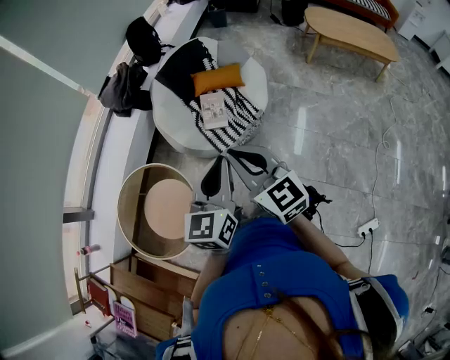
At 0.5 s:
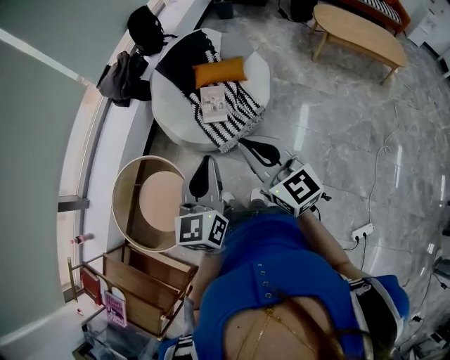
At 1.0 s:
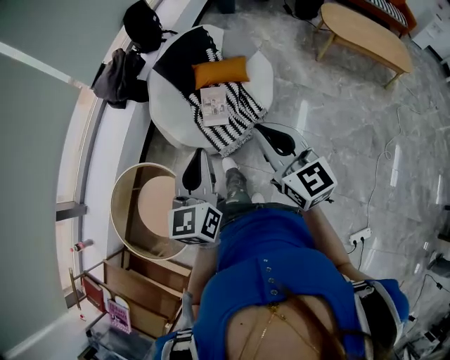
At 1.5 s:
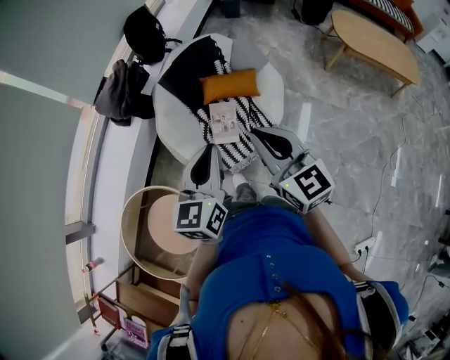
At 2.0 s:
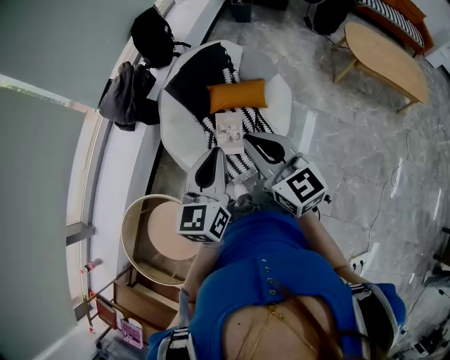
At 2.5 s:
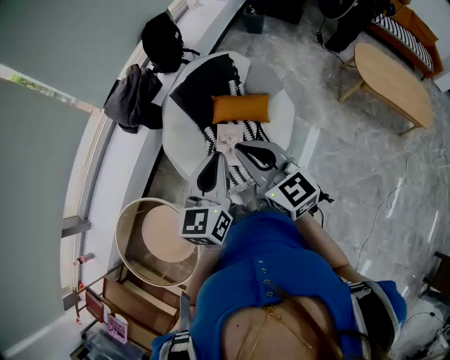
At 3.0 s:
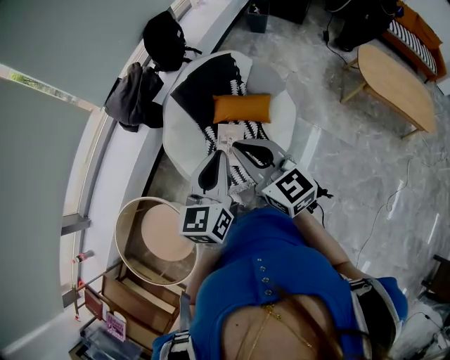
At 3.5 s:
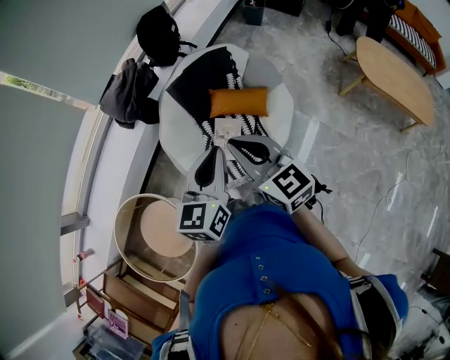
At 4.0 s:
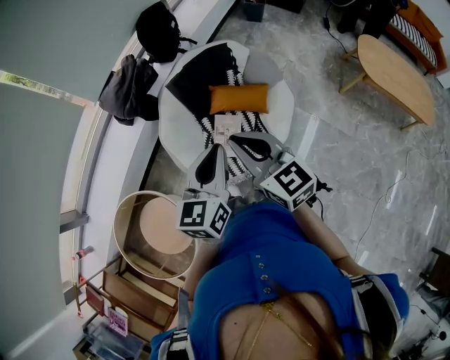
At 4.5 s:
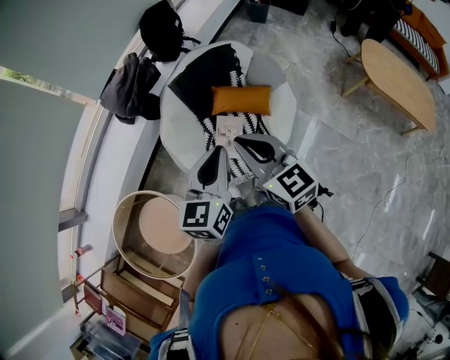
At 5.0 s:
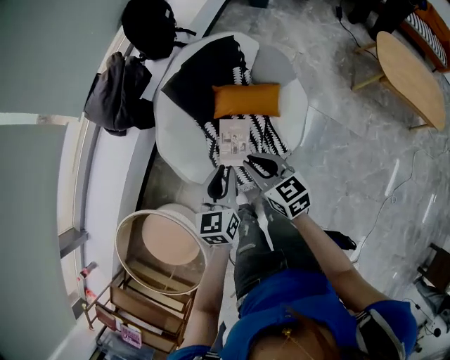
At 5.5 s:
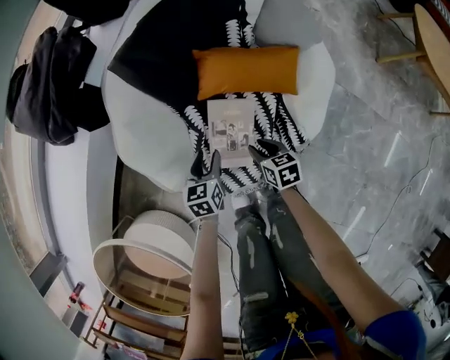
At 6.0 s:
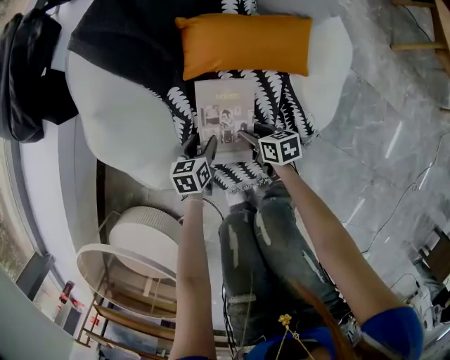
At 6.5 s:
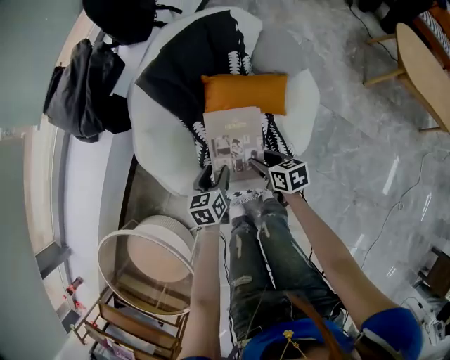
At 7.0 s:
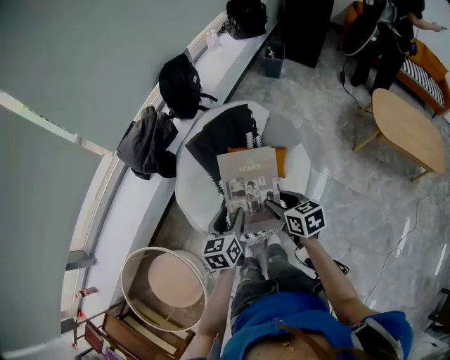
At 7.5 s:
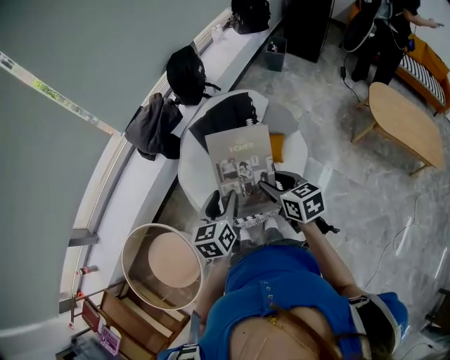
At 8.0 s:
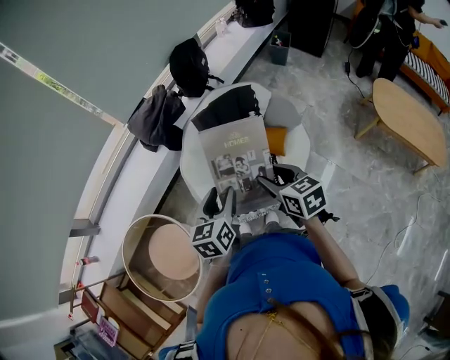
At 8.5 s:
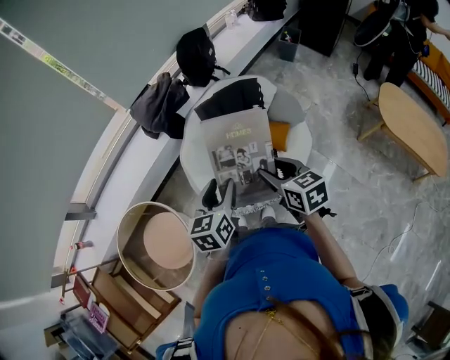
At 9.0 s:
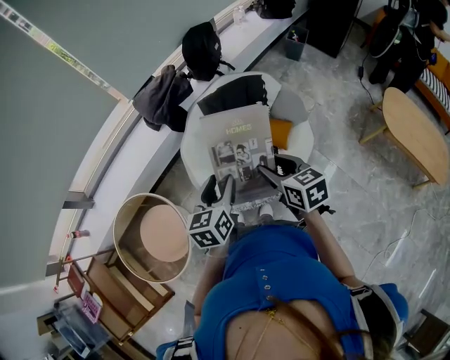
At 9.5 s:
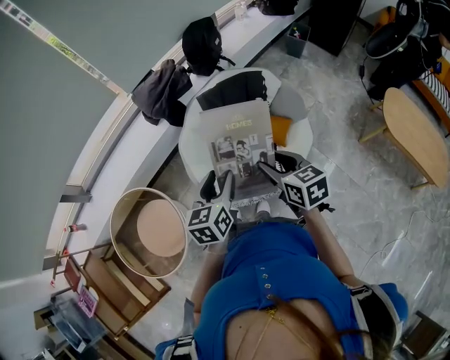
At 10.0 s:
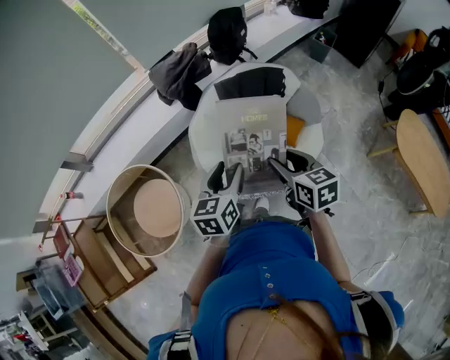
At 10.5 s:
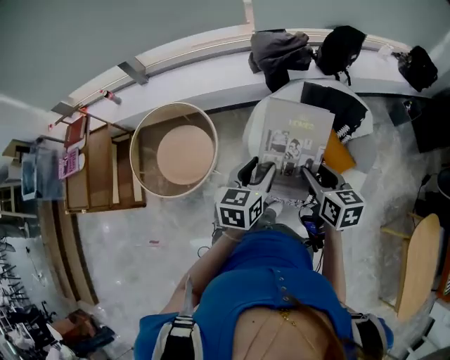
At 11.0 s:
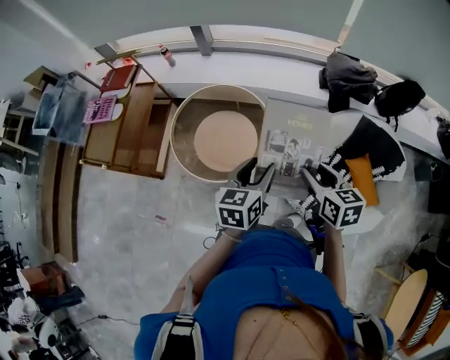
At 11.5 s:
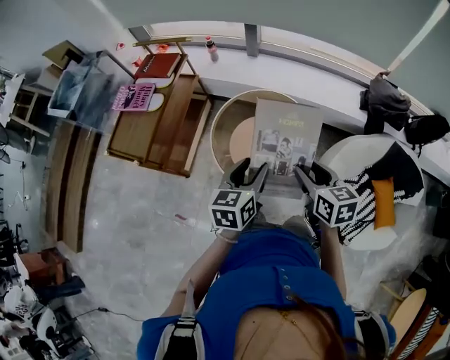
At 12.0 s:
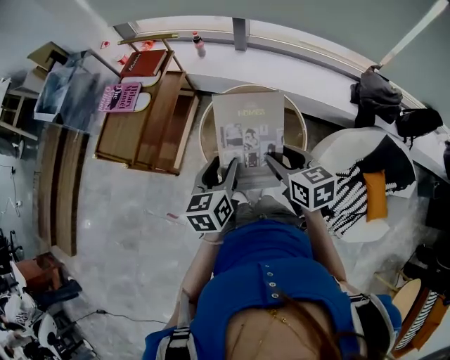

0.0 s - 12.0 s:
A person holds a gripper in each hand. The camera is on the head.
0.0 s - 2.0 s: Both grippers move forward, about 40 cm.
2.0 s - 4.0 s: The right gripper shifts roughly 5 cm forward, while the left gripper shifts by approximately 5 cm.
4.0 s - 6.0 s: Both grippers move downward, roughly 90 cm. The left gripper angles its fingers downward, by about 40 degrees, and opens up. The right gripper tips its fingers downward by roughly 40 degrees, and opens its fingers.
6.0 s - 8.0 s: Both grippers move upward, about 80 cm. The right gripper changes its angle by some 40 degrees; the left gripper turns by roughly 30 degrees.
8.0 s - 10.0 s: The grippers move only a little.
10.0 s - 12.0 s: The two grippers travel together, roughly 70 cm. The left gripper rotates some 60 degrees. The right gripper changes its angle by about 50 degrees.

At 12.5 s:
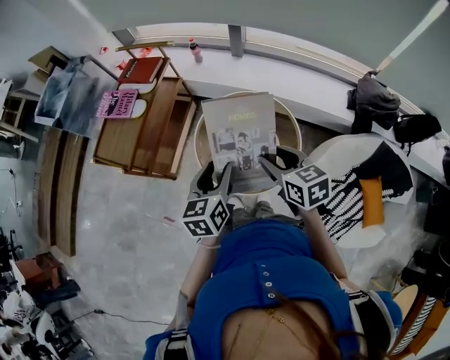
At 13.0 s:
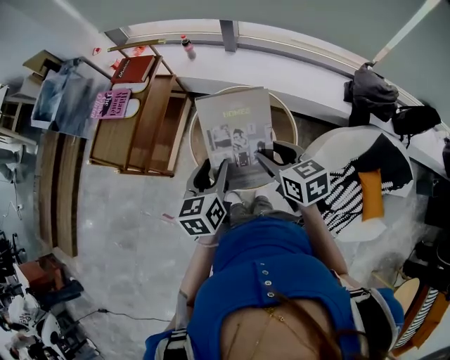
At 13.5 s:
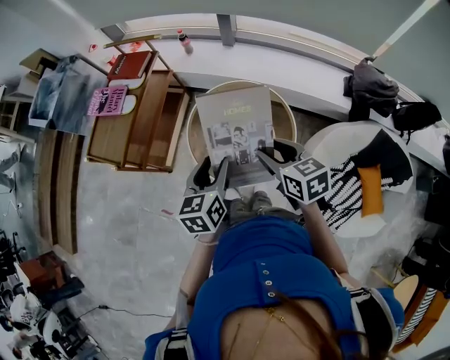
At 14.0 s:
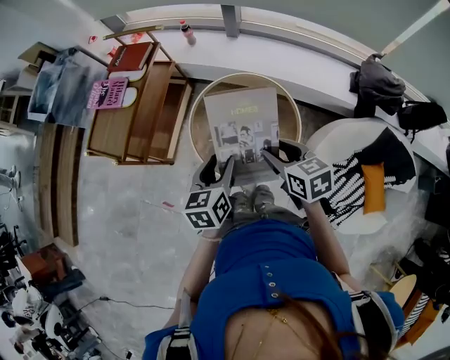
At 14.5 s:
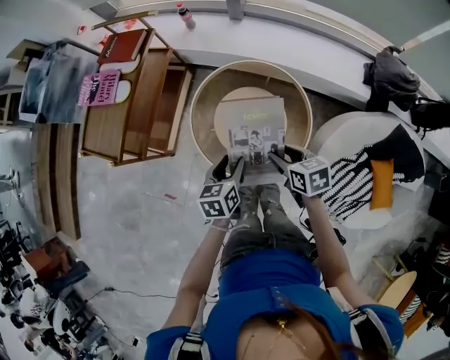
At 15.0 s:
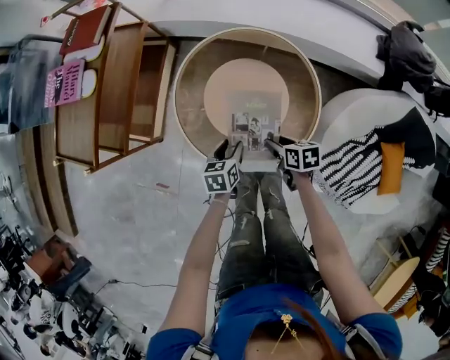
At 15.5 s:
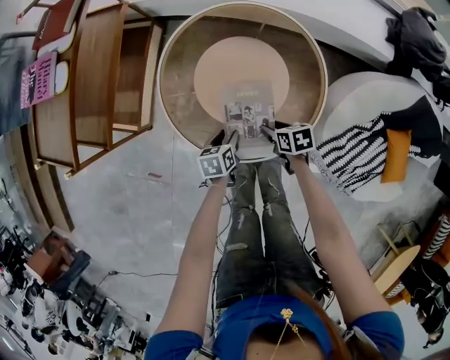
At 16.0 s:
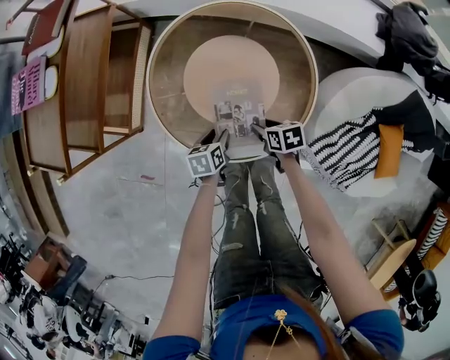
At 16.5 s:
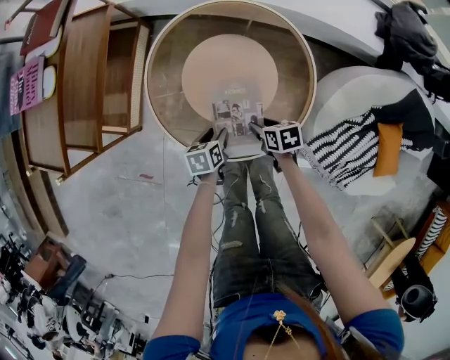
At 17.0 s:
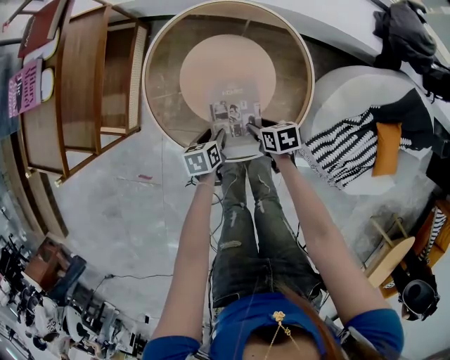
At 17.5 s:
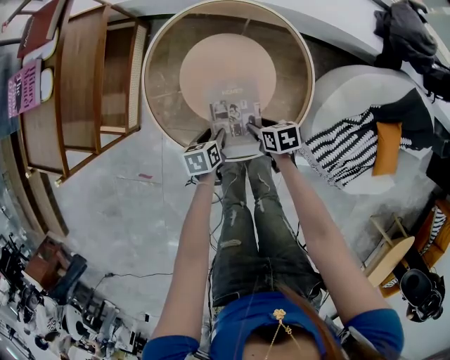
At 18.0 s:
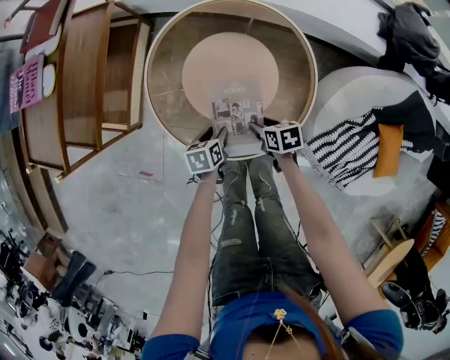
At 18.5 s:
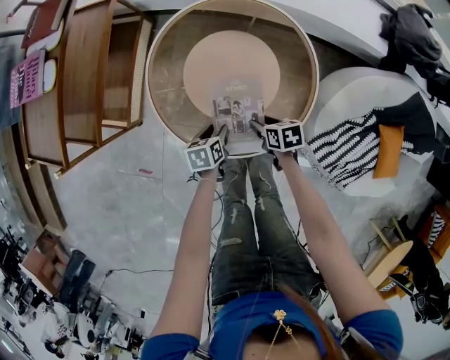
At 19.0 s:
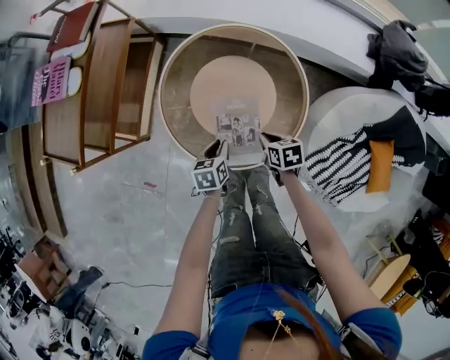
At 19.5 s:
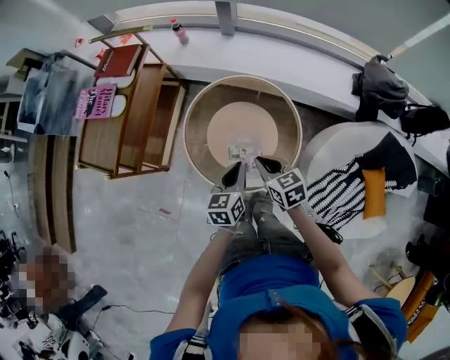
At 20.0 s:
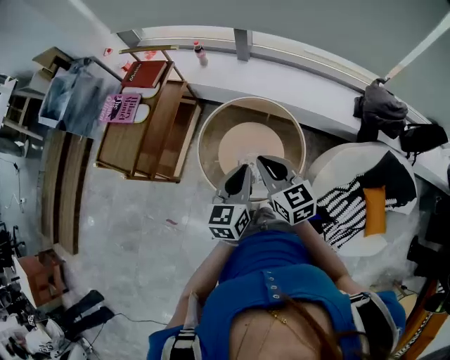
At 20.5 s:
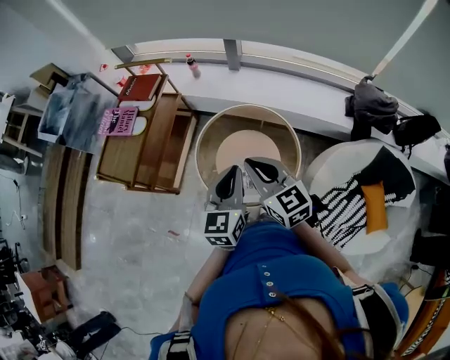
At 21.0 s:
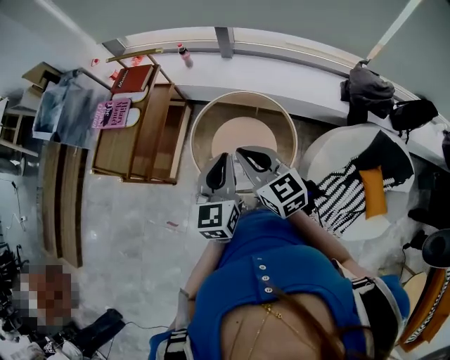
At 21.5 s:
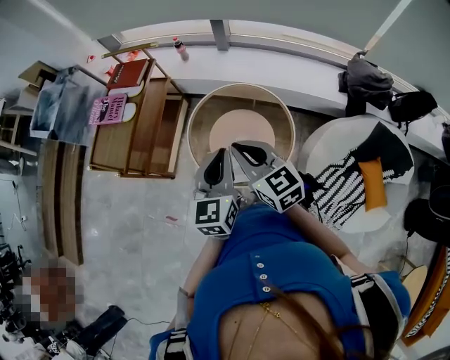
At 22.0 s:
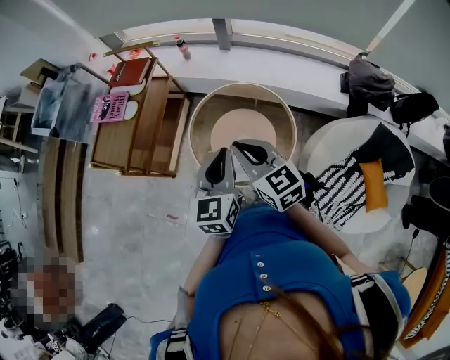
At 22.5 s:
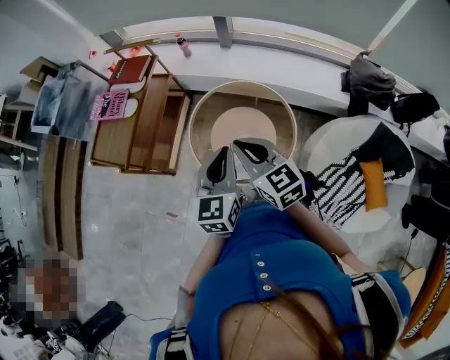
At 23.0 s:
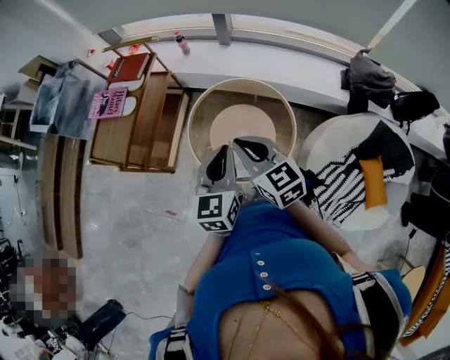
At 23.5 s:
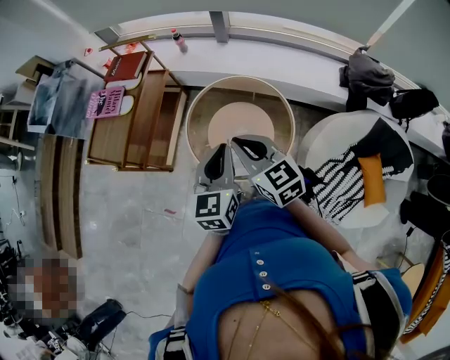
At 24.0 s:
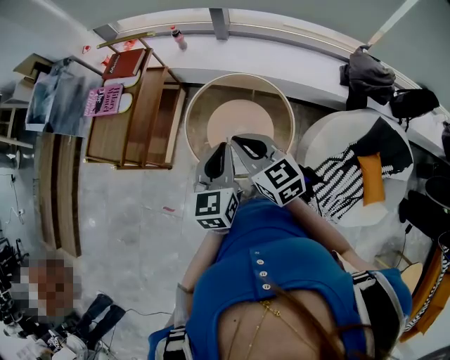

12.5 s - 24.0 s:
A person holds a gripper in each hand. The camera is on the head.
12.5 s - 14.5 s: The grippers both shift downward by some 20 cm.
14.5 s - 16.5 s: Both grippers move downward, approximately 35 cm. The left gripper changes its angle by about 20 degrees. Meanwhile the right gripper turns by about 20 degrees.
16.5 s - 18.5 s: The two grippers keep their place.
18.5 s - 20.0 s: Both grippers travel together upward, about 50 cm. The left gripper tilts its fingers roughly 40 degrees upward, and closes up. The right gripper tips its fingers upward by some 40 degrees, and closes.
20.0 s - 22.0 s: The left gripper shifts some 5 cm upward. The right gripper shifts by roughly 5 cm.
22.0 s - 24.0 s: There are only small adjustments of the grippers.

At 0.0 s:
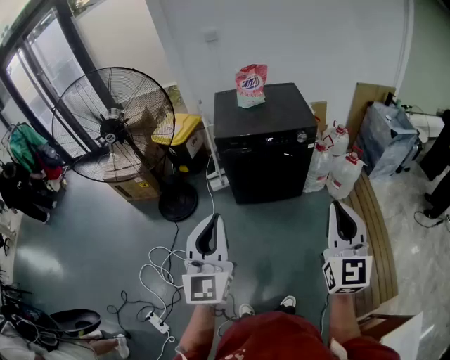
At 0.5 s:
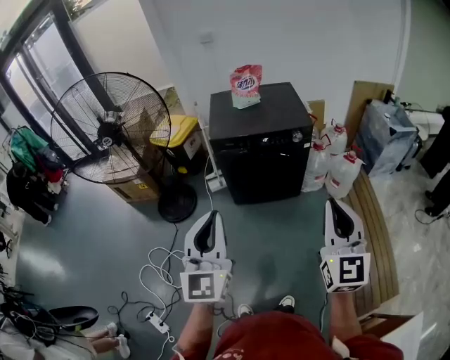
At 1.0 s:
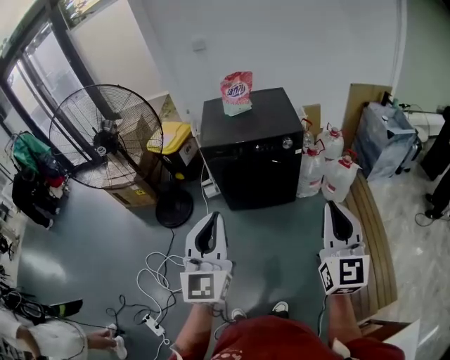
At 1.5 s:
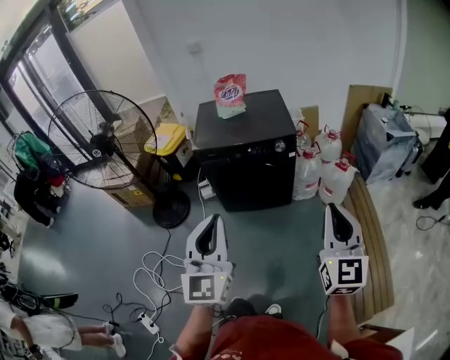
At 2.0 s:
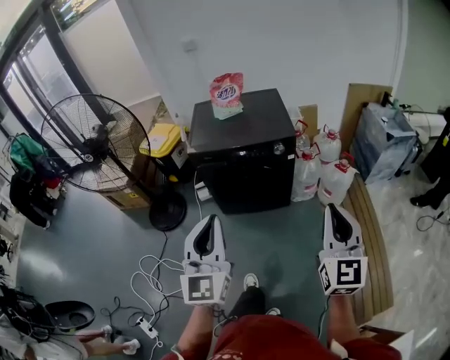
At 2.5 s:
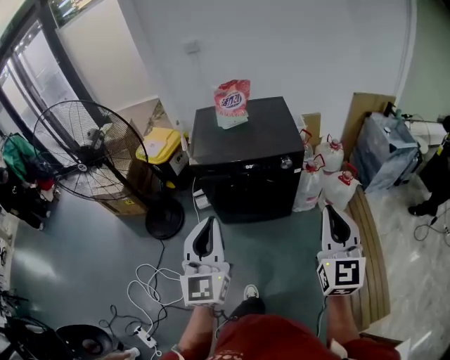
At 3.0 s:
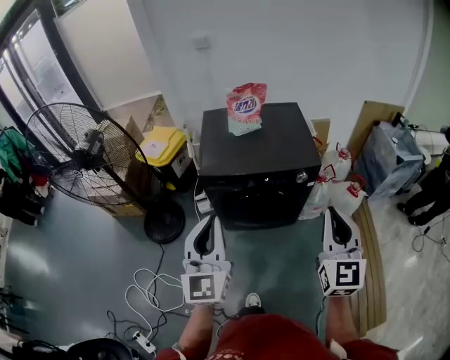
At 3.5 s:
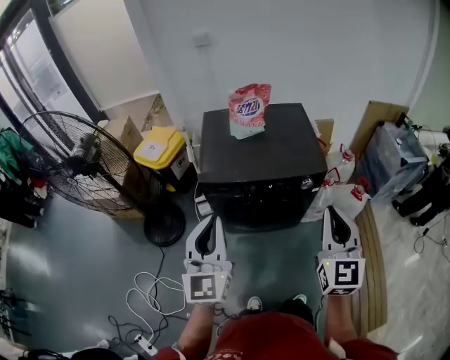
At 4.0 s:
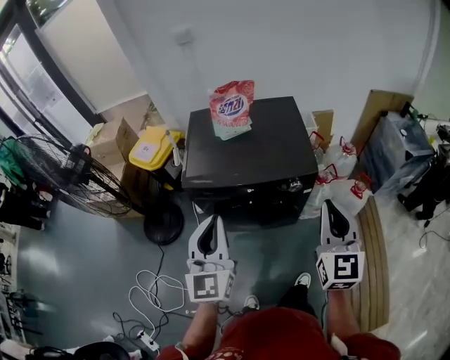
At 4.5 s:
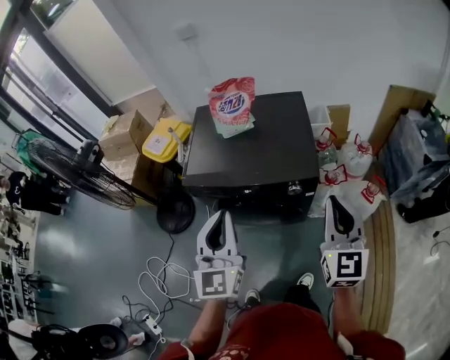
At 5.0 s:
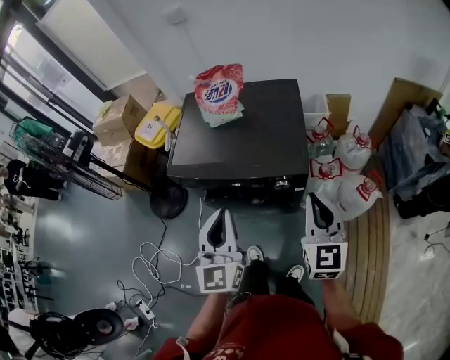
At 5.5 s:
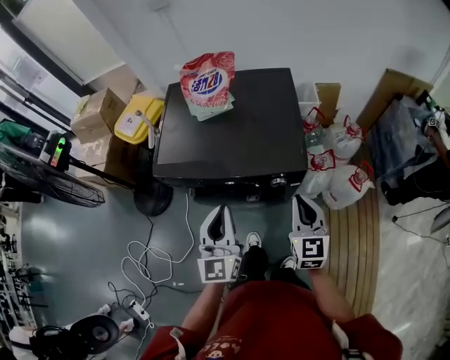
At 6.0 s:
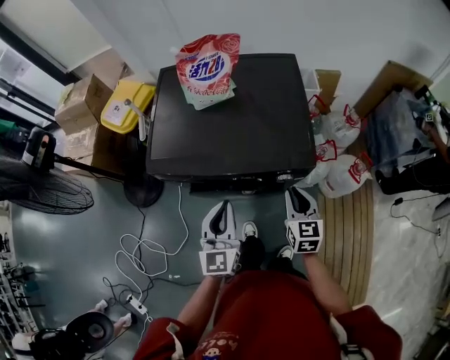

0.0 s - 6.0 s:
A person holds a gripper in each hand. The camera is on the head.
0.0 s - 2.0 s: Both grippers move to the right and forward, some 20 cm.
2.0 s - 4.0 s: Both grippers move forward, about 35 cm.
4.0 s - 6.0 s: The right gripper is displaced downward and forward by about 35 cm, and swivels approximately 30 degrees. Meanwhile the left gripper goes roughly 30 cm downward, forward and to the right.
